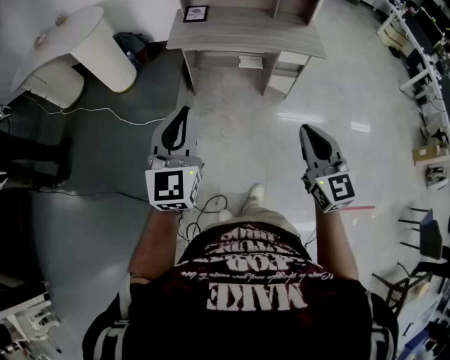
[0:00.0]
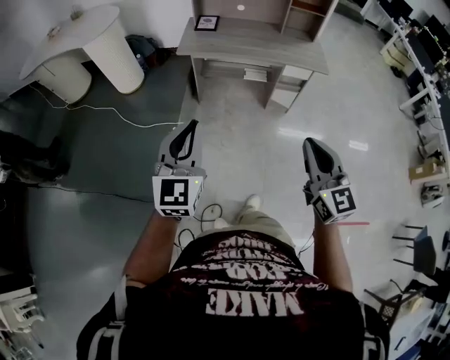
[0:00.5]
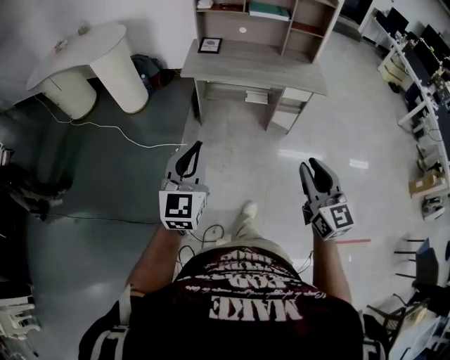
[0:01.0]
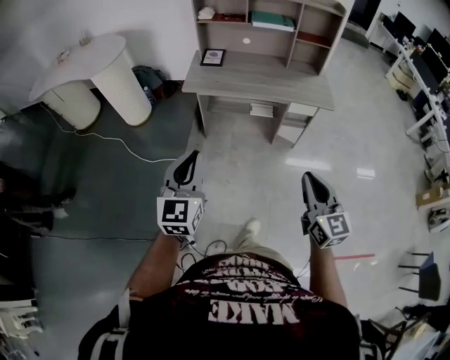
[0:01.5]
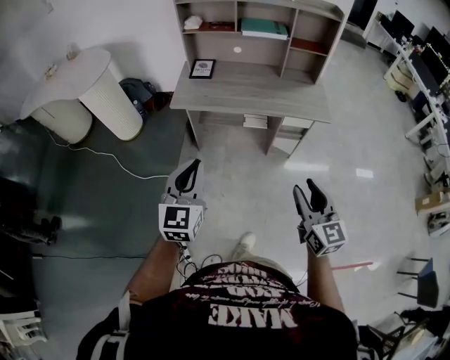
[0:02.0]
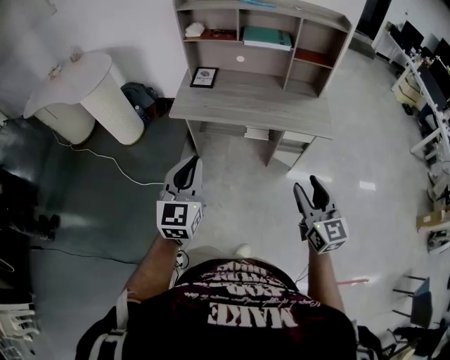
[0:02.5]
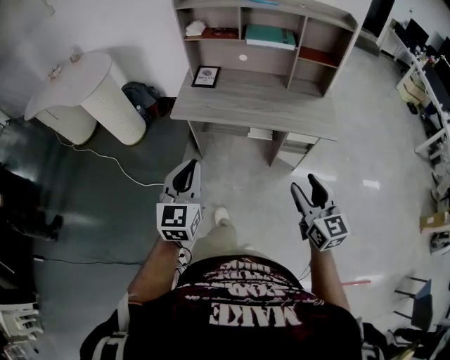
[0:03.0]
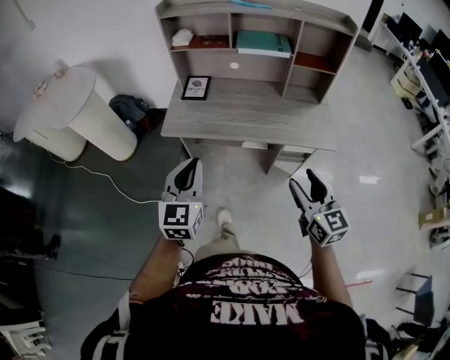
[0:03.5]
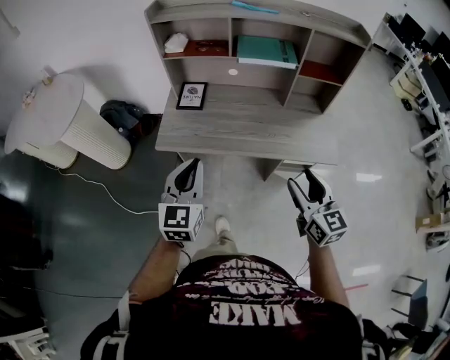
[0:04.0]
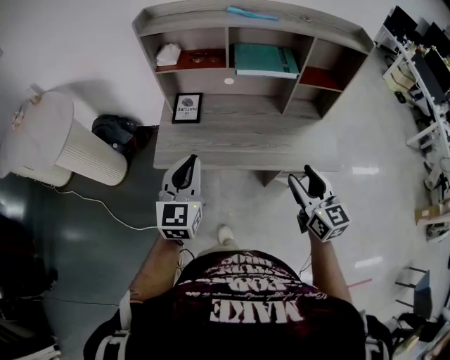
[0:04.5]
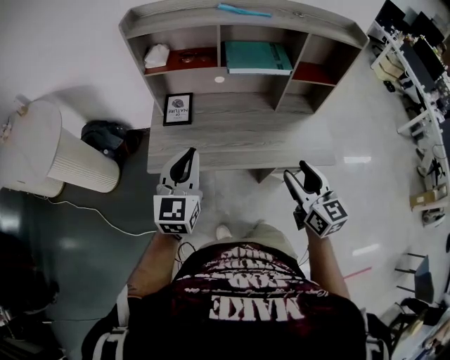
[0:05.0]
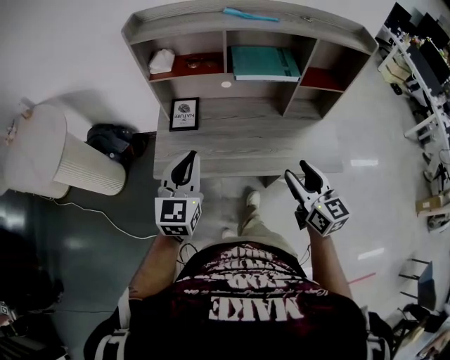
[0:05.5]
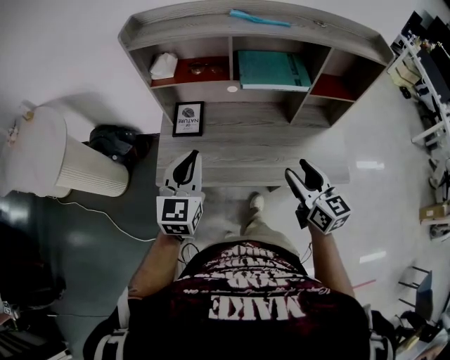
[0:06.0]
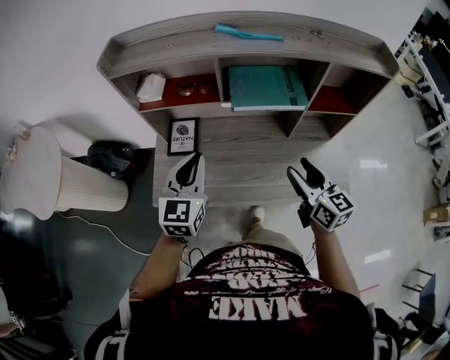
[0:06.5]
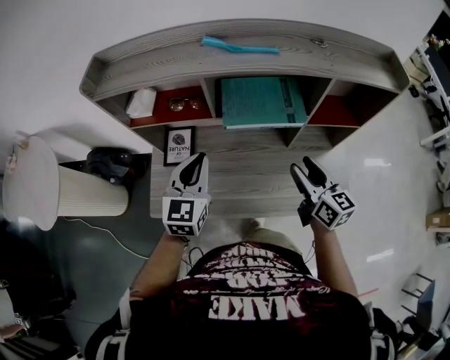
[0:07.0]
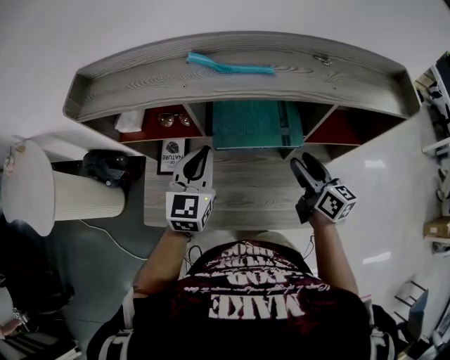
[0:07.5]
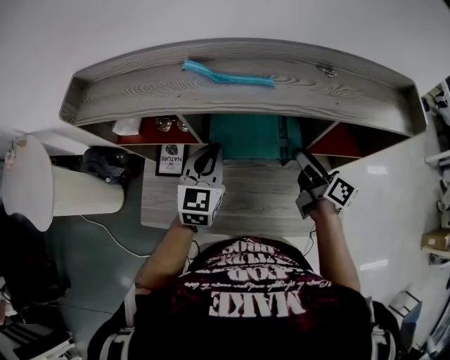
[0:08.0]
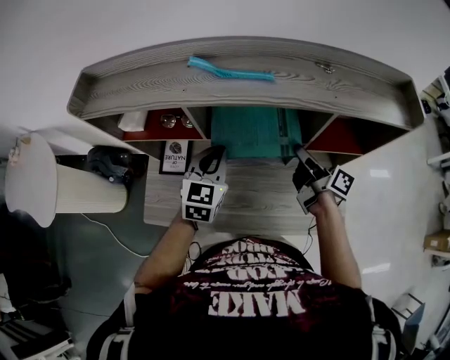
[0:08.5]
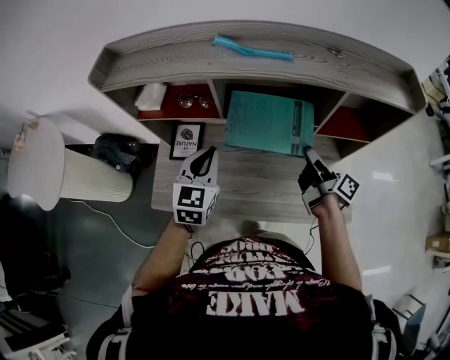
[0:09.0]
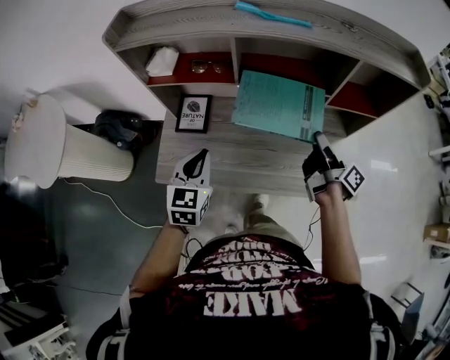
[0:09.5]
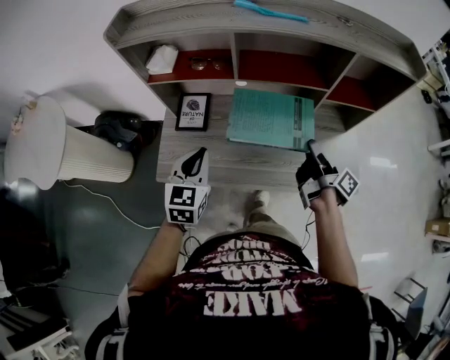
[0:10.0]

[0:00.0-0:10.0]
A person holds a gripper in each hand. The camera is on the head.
0:00.0 to 0:02.0: The left gripper heads forward, covering about 15 cm. Meanwhile the right gripper shifts approximately 15 cm forward and to the right, and opens its fingers.
0:02.0 to 0:04.0: Both grippers move forward, some 30 cm.
0:04.0 to 0:06.0: The two grippers go some 20 cm forward.
0:06.0 to 0:08.0: The two grippers go about 30 cm forward and to the right. The right gripper twists about 40 degrees clockwise, seen from behind.
0:08.0 to 0:10.0: The right gripper moves backward, some 15 cm, turns by some 30 degrees, and closes. Meanwhile the left gripper moves backward and to the left, roughly 25 cm.

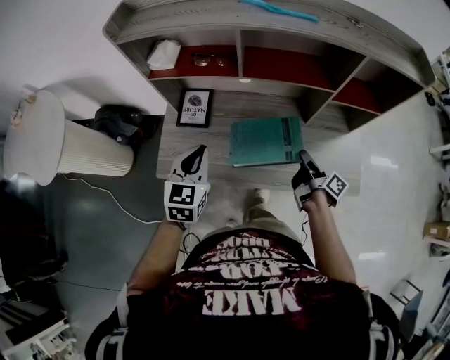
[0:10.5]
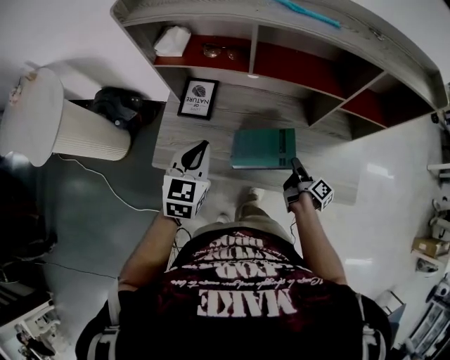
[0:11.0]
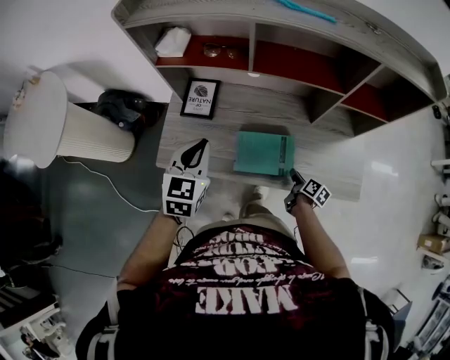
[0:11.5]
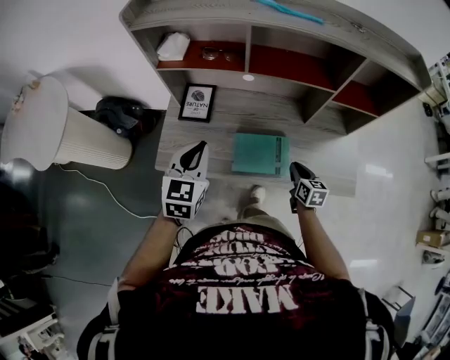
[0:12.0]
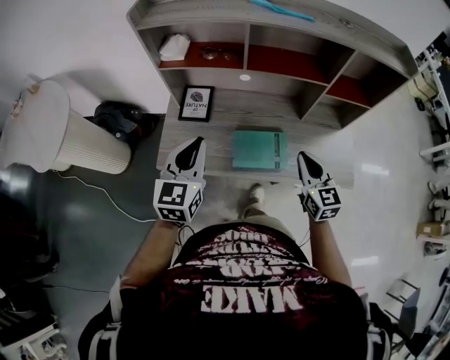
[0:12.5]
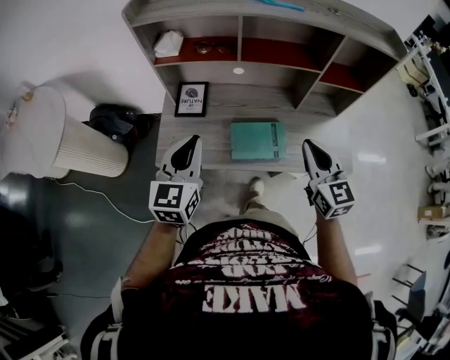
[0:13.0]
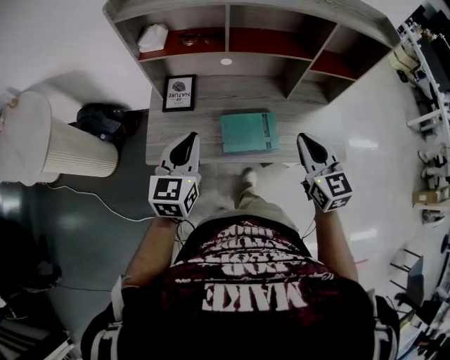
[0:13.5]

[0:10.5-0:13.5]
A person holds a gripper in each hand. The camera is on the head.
0:10.5 to 0:12.0: The right gripper travels downward by approximately 5 cm, rolls counterclockwise, seen from behind, by approximately 60 degrees, and closes its fingers.
0:12.0 to 0:13.5: The right gripper moves upward, about 25 cm, and changes its angle by roughly 30 degrees.

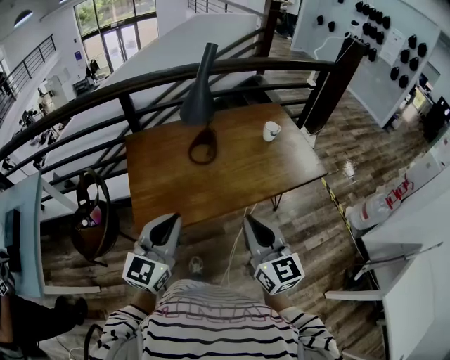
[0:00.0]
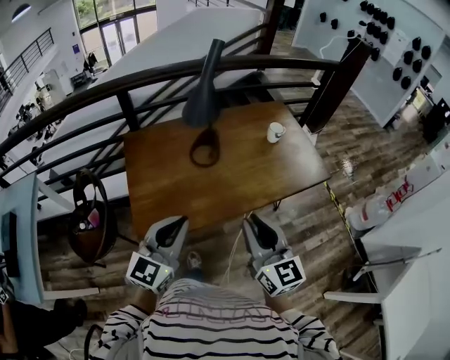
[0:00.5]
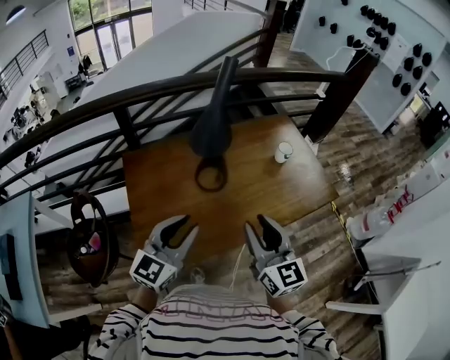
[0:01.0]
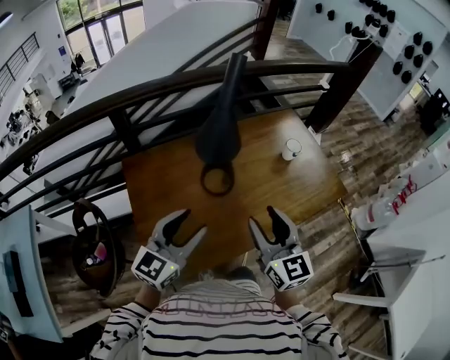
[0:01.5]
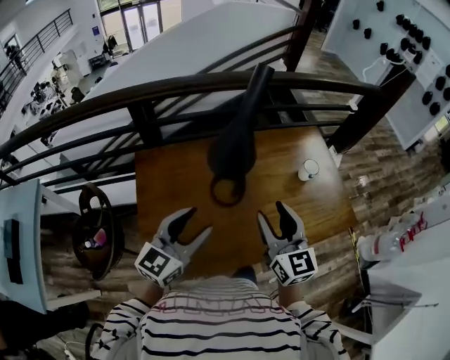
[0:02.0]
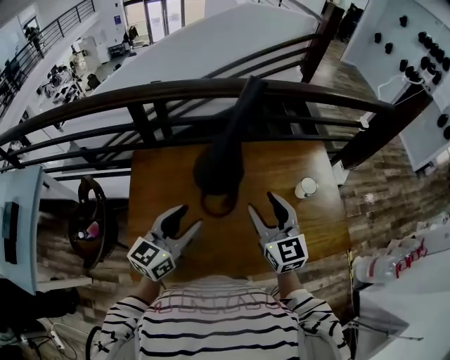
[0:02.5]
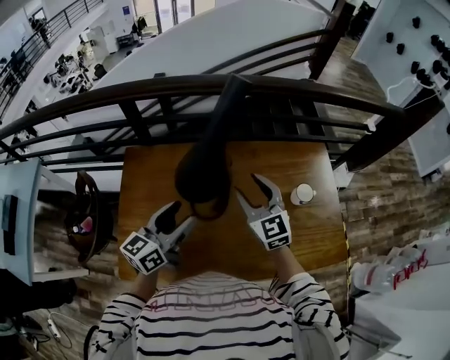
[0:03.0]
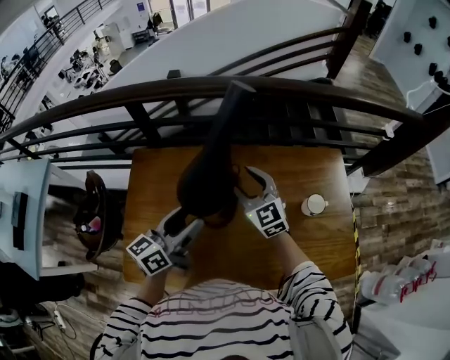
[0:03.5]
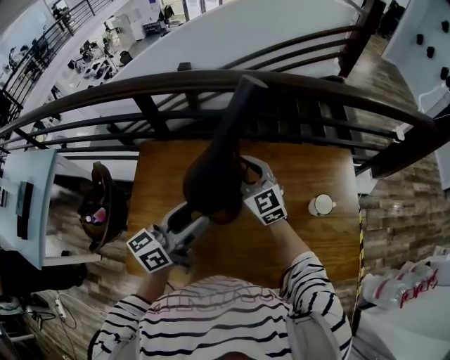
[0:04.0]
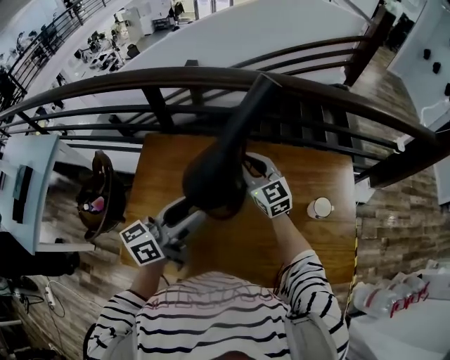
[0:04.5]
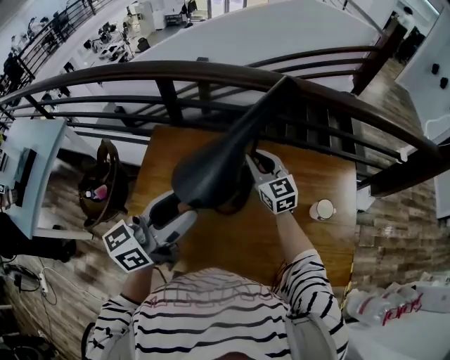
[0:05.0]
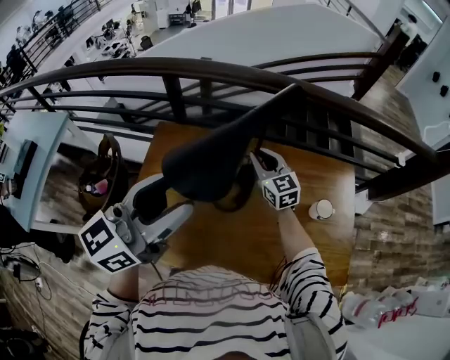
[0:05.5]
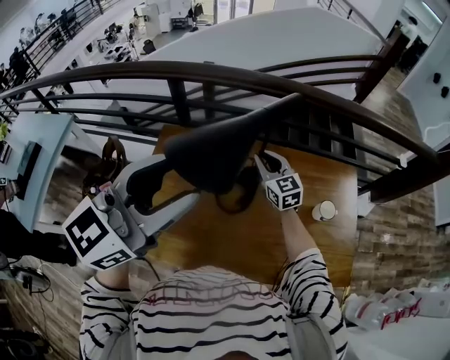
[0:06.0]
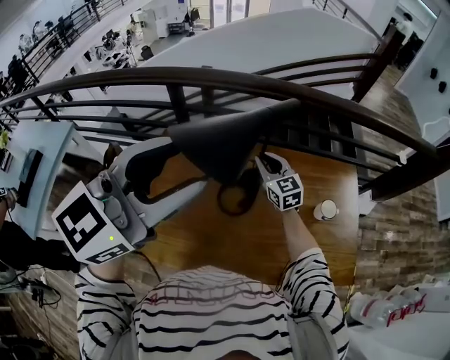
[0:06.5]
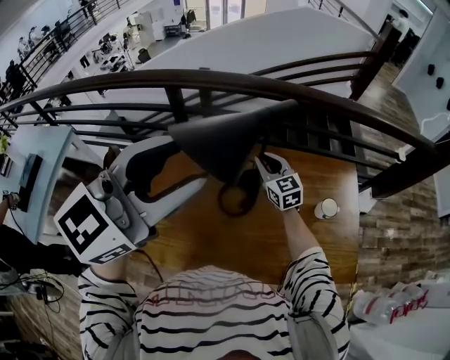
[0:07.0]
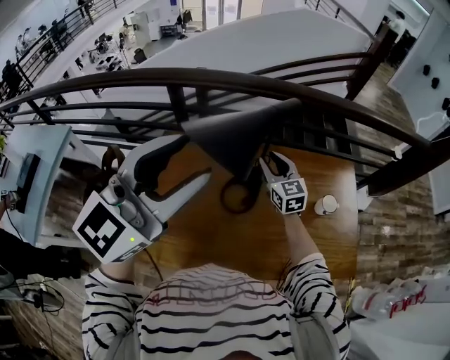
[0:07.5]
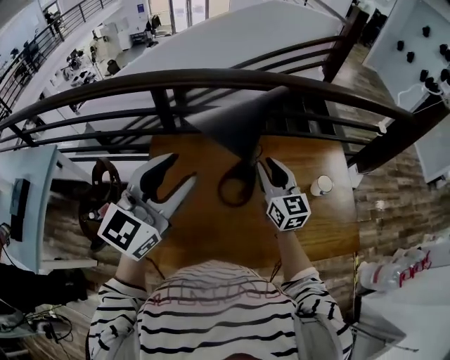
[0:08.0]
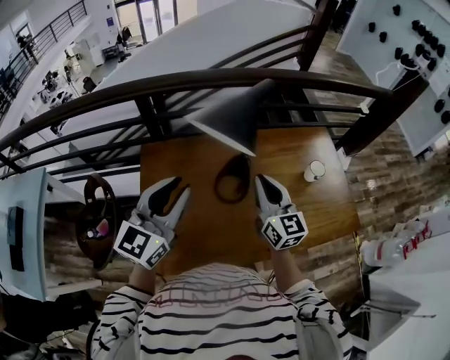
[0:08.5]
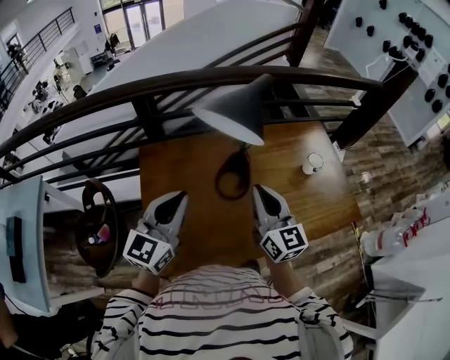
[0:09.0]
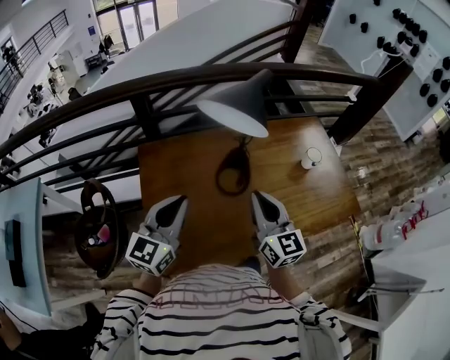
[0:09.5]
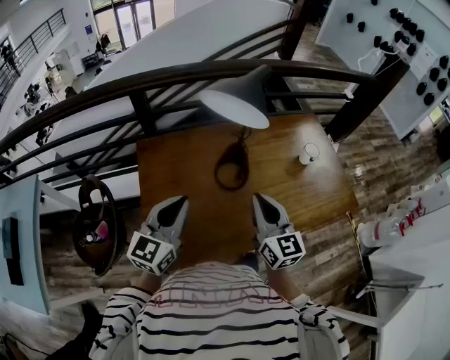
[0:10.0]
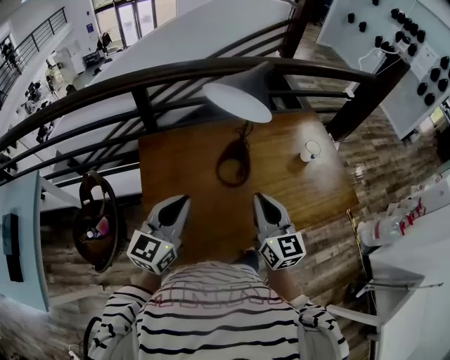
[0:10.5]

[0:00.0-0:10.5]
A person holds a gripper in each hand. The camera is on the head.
0:00.0 to 0:02.0: The grippers both shift forward by about 35 cm. The left gripper opens its fingers. The right gripper opens.
0:02.0 to 0:04.0: The right gripper travels forward by some 30 cm, and swivels roughly 40 degrees. Meanwhile the left gripper travels forward and to the right by some 20 cm, and rotates some 40 degrees.
0:04.0 to 0:06.5: The left gripper goes approximately 25 cm upward, and twists some 40 degrees clockwise, seen from behind.
0:06.5 to 0:08.5: The left gripper moves downward and to the left, about 20 cm, and closes. Meanwhile the right gripper heads backward and upward, covering roughly 20 cm, and swivels about 30 degrees.
0:08.5 to 0:10.5: The left gripper shifts some 10 cm backward and downward, and closes up, while the right gripper is displaced backward by about 15 cm.

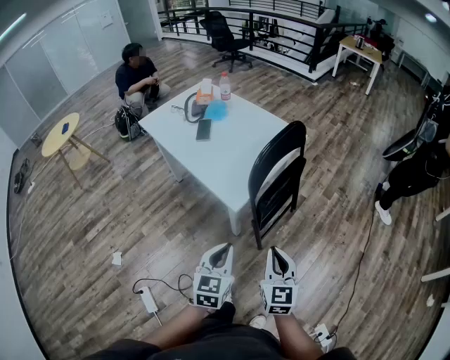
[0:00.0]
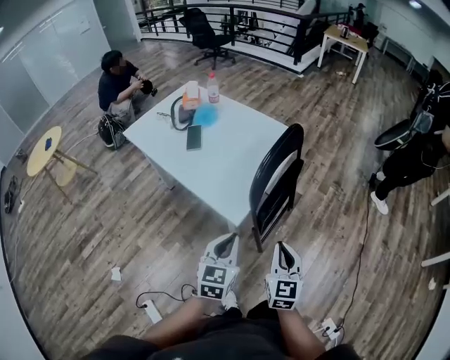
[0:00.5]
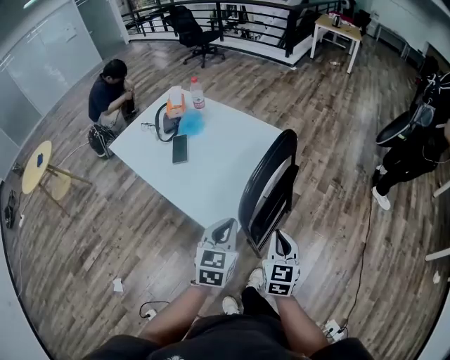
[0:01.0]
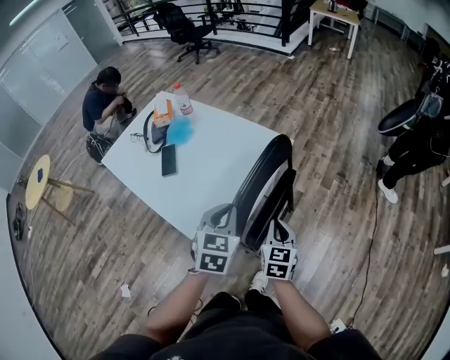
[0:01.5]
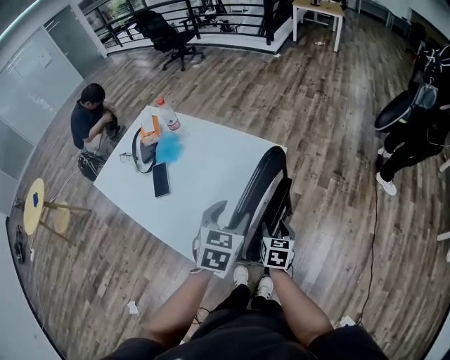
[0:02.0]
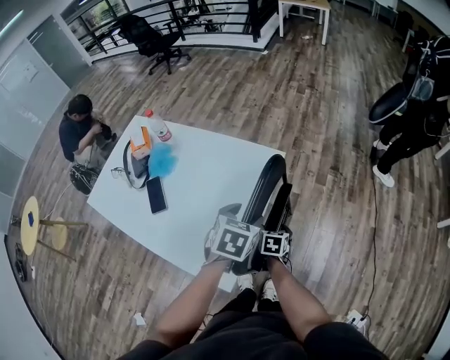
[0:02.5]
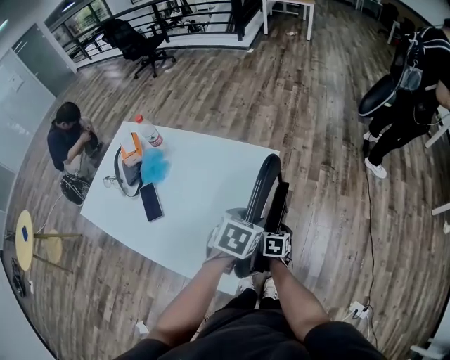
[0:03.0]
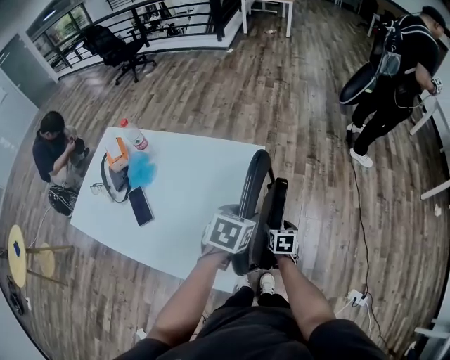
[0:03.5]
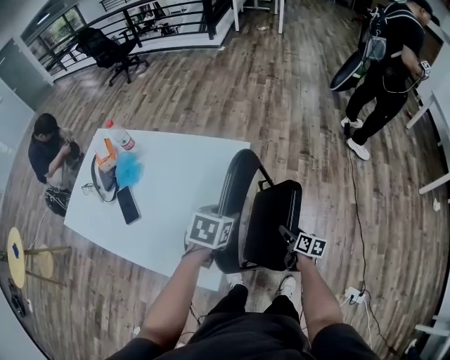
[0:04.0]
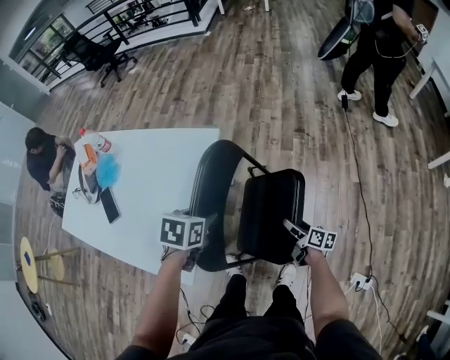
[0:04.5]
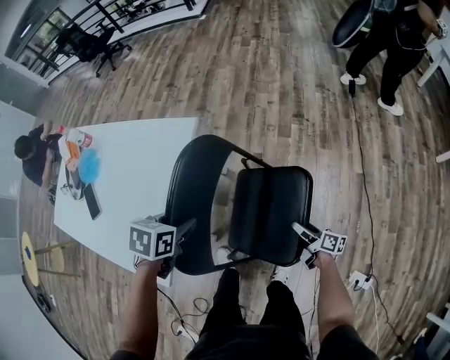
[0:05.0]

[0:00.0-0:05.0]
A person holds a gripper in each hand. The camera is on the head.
0:00.0 to 0:02.5: The two grippers travel together, forward, roughly 50 cm. The left gripper changes its angle by about 40 degrees, and opens its fingers. The right gripper shifts roughly 25 cm downward, tips its fingers downward by about 40 degrees, and opens its fingers.
0:02.5 to 0:05.0: The left gripper travels downward and to the right by some 20 cm, and closes up. Meanwhile the right gripper moves to the right, some 40 cm, and points its fingers approximately 30 degrees further upward.
